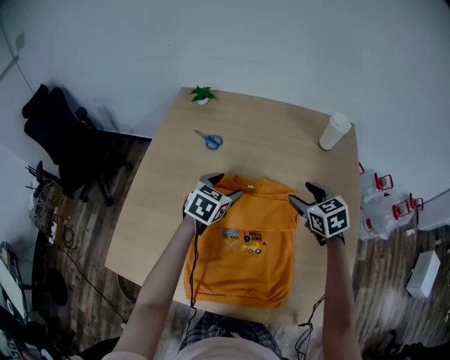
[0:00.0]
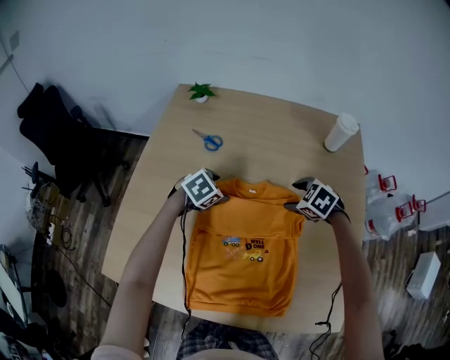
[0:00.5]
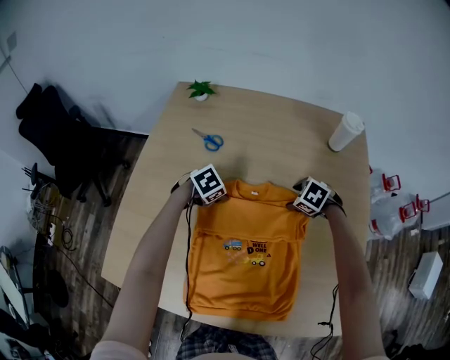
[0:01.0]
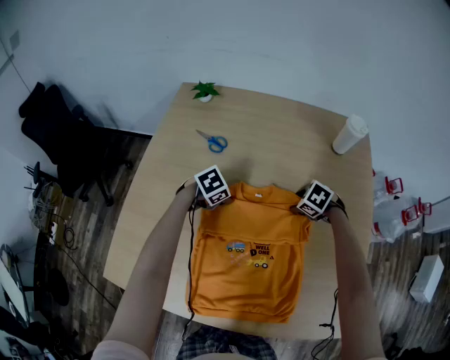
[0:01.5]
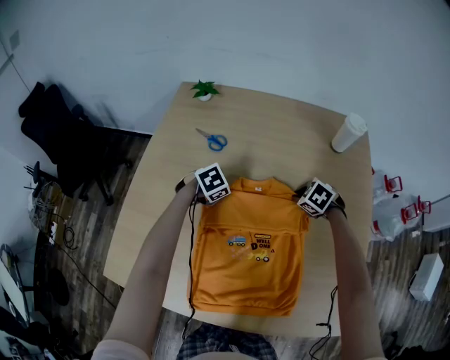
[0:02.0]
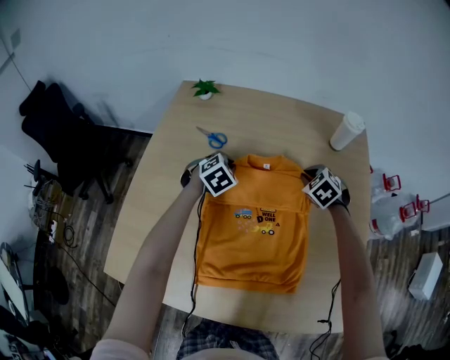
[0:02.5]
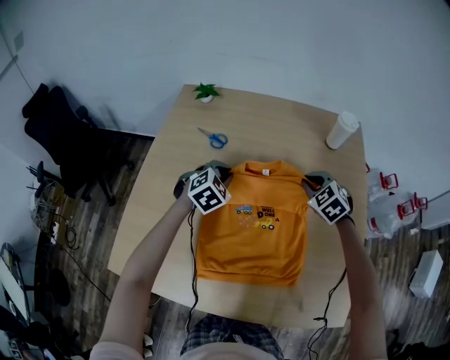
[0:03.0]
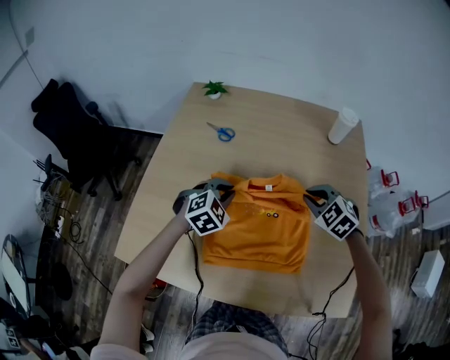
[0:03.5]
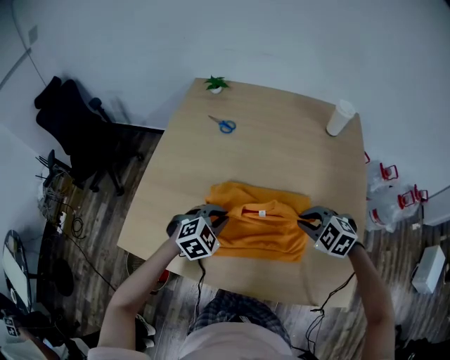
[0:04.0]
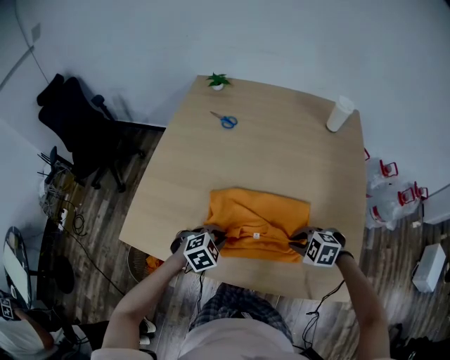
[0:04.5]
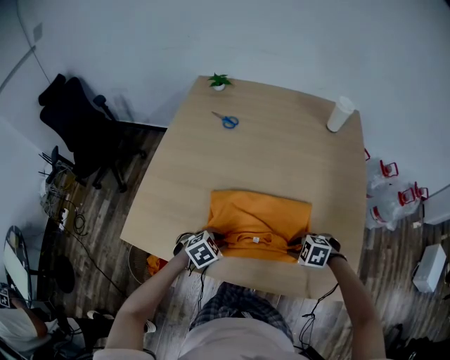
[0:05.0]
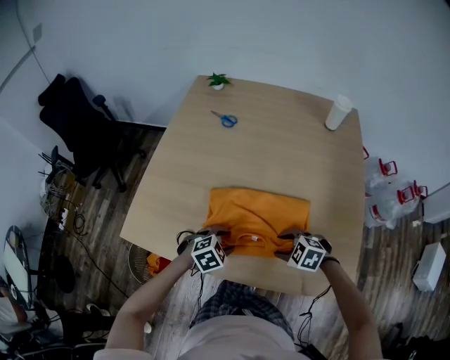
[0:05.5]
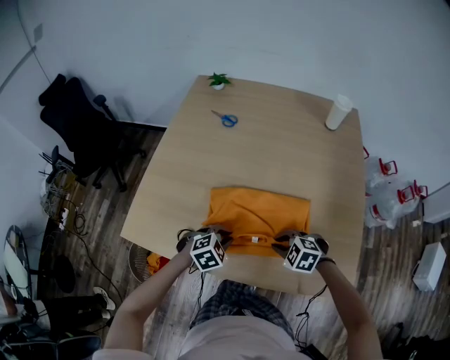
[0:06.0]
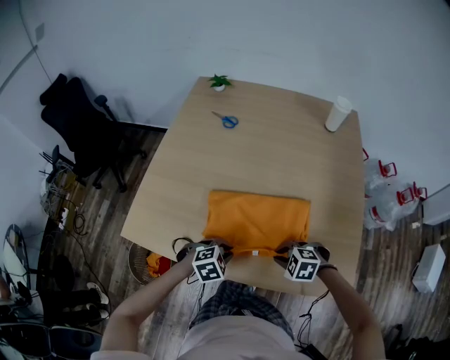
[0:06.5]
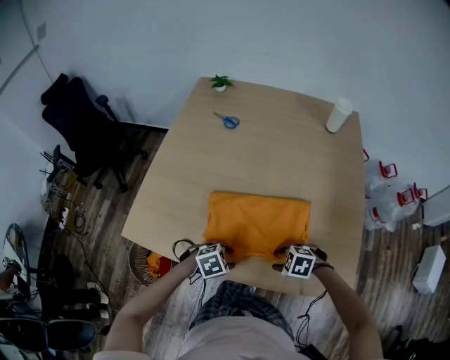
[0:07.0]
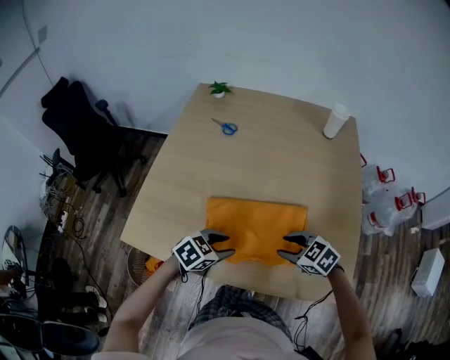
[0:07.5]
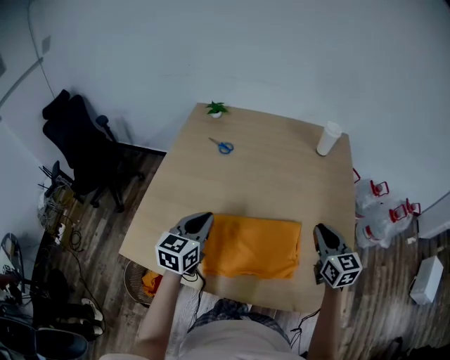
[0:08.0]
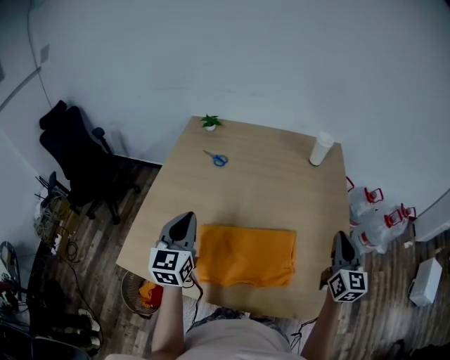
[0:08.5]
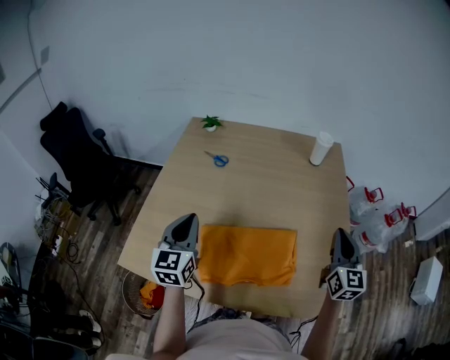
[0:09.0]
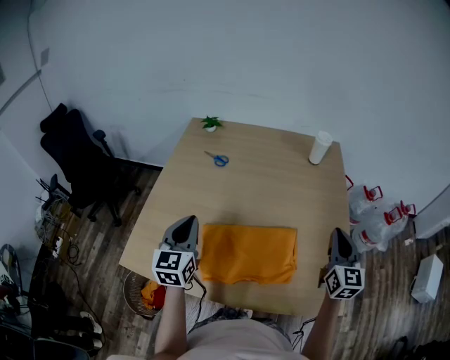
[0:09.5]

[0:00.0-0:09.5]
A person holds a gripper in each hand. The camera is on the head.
0:00.0 to 0:02.0: The two grippers go about 15 cm downward. The right gripper changes its angle by approximately 40 degrees, and closes its fingers, while the left gripper changes its angle by roughly 40 degrees, and closes.
0:02.0 to 0:04.0: The right gripper changes place by roughly 25 cm, and swivels roughly 30 degrees, while the left gripper ends up some 25 cm from where it was, and rotates roughly 30 degrees.
0:04.0 to 0:05.5: The right gripper ends up approximately 15 cm from where it was, and opens up. Meanwhile the left gripper changes place by about 15 cm, and opens up.
0:05.5 to 0:07.5: The grippers both shift upward by about 5 cm. The left gripper changes its angle by approximately 20 degrees, and closes and opens again, while the right gripper rotates about 20 degrees.
0:07.5 to 0:09.5: The grippers both shift upward by about 20 cm. The left gripper points its fingers roughly 40 degrees further upward, and closes its fingers, while the right gripper tips its fingers upward by roughly 40 degrees, and closes up.

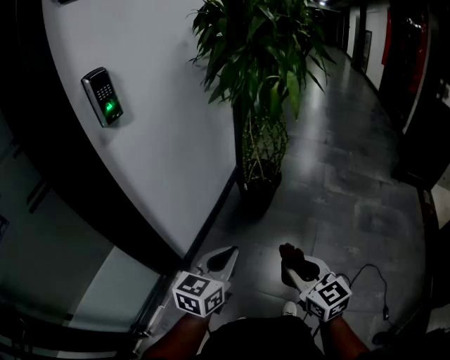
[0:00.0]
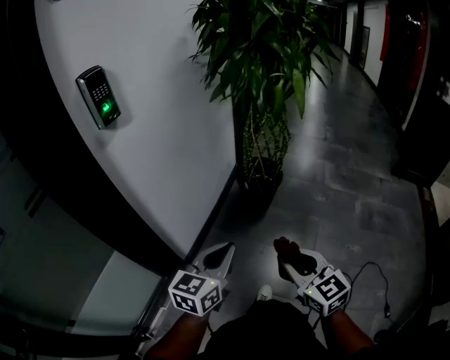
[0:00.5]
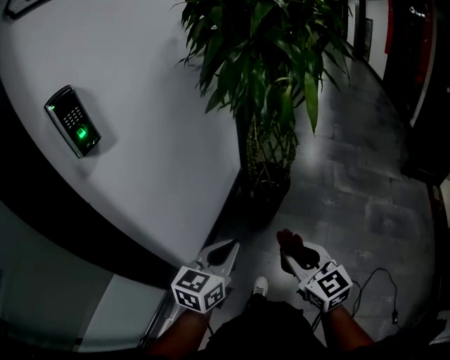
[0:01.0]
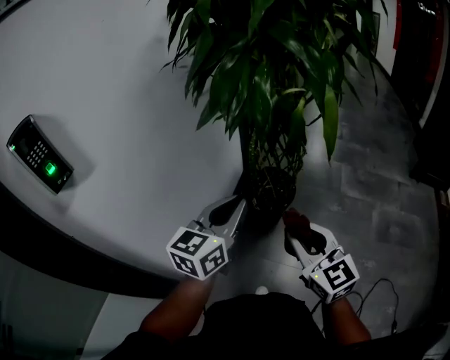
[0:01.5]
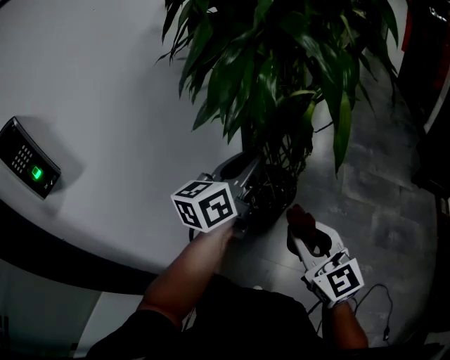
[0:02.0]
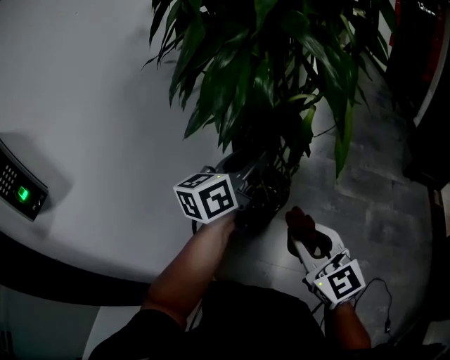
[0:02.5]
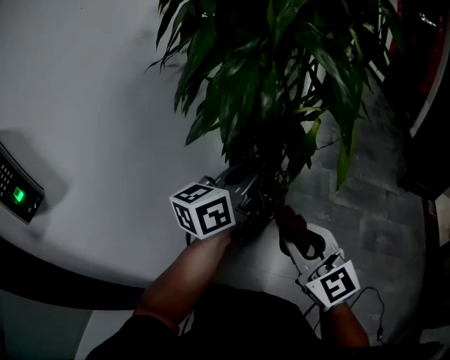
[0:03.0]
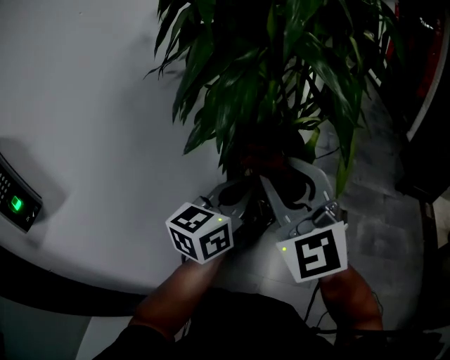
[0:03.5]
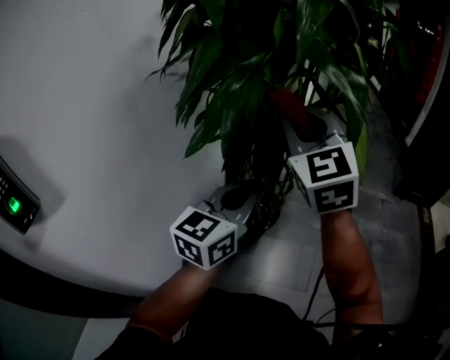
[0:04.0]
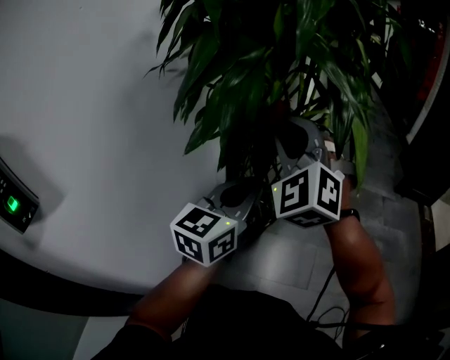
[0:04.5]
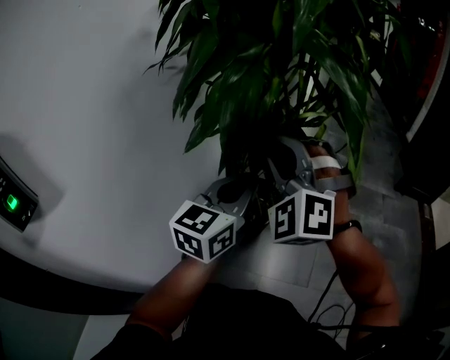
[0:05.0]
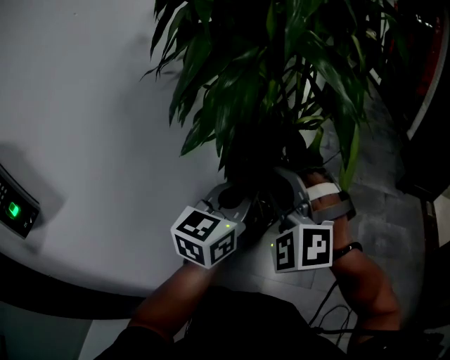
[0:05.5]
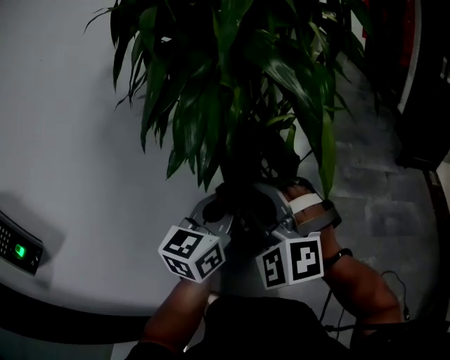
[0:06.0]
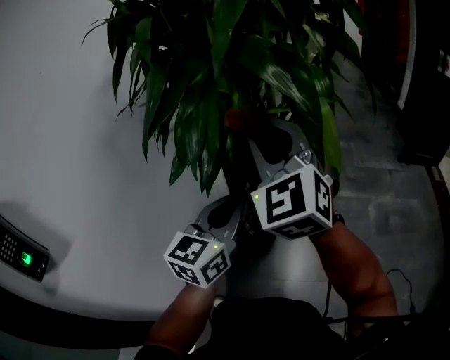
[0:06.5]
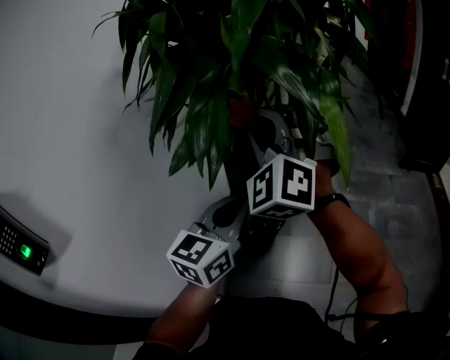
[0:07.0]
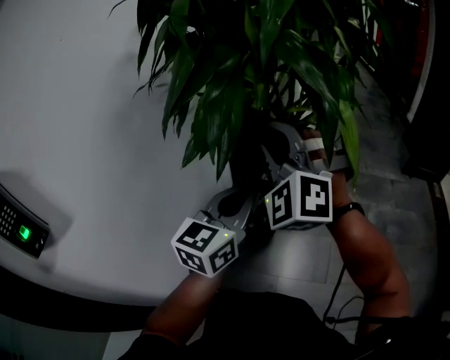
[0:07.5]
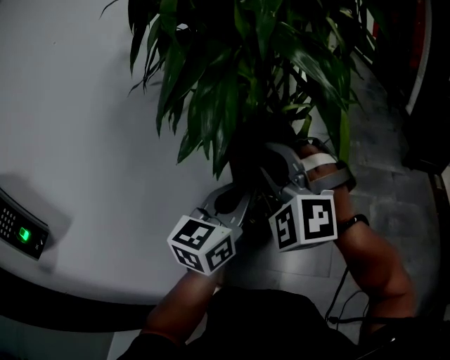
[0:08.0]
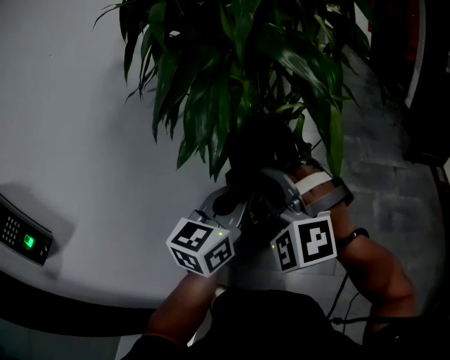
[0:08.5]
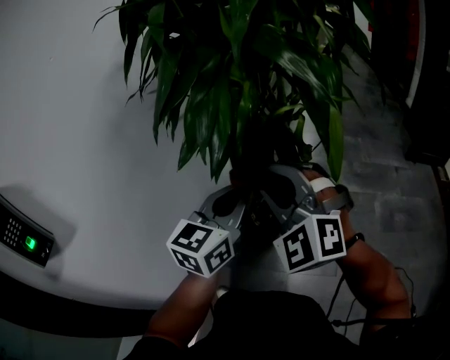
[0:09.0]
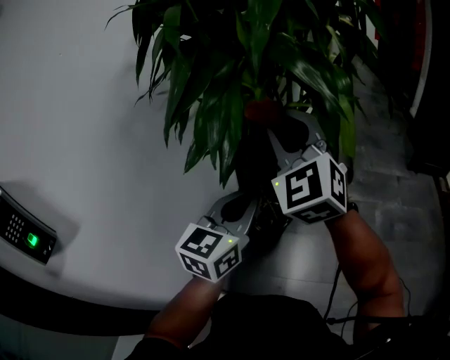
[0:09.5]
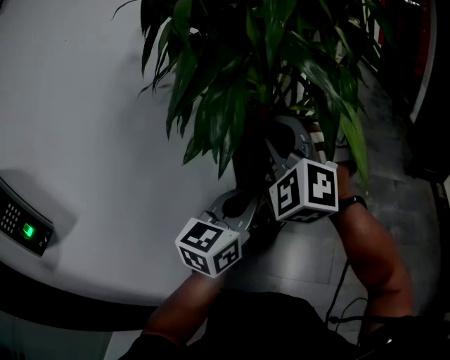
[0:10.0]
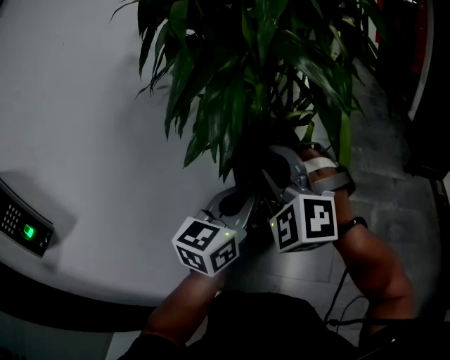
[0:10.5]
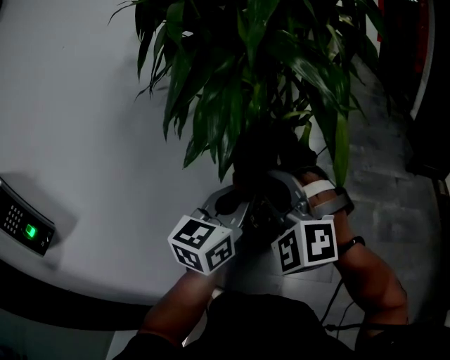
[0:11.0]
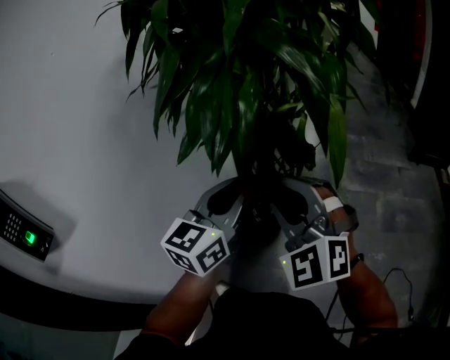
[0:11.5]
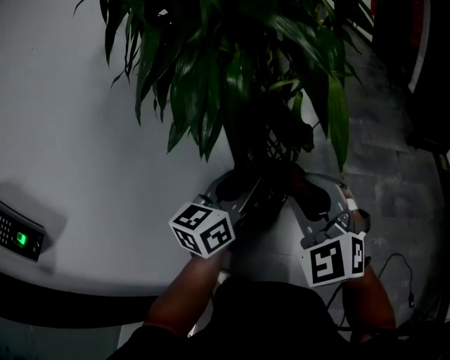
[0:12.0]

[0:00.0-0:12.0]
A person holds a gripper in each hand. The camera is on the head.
0:00.0 to 0:02.0: The two grippers go roughly 40 cm forward. The left gripper rotates approximately 20 degrees, and opens up.
0:02.0 to 0:04.0: The left gripper closes its fingers. The right gripper goes some 30 cm forward and upward, and rotates approximately 30 degrees.
0:04.0 to 0:06.0: The right gripper heads downward and backward, covering approximately 15 cm, and changes its angle by about 40 degrees.
0:08.0 to 0:10.0: The right gripper moves roughly 5 cm.
0:10.0 to 0:12.0: The left gripper opens up. Meanwhile the right gripper is displaced backward, downward and to the right by some 15 cm, and changes its angle by about 20 degrees.

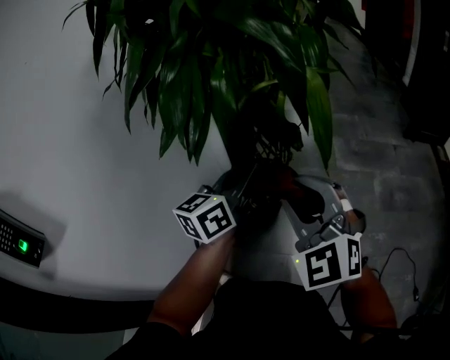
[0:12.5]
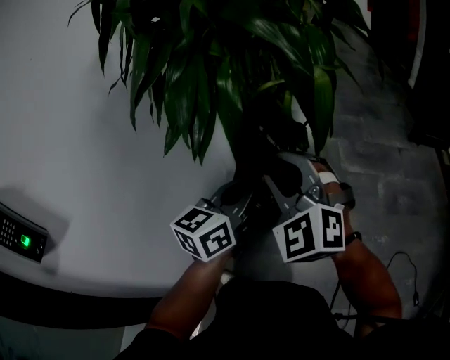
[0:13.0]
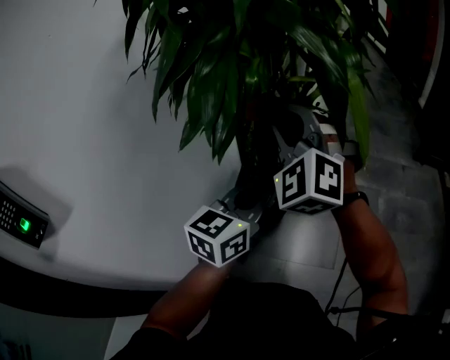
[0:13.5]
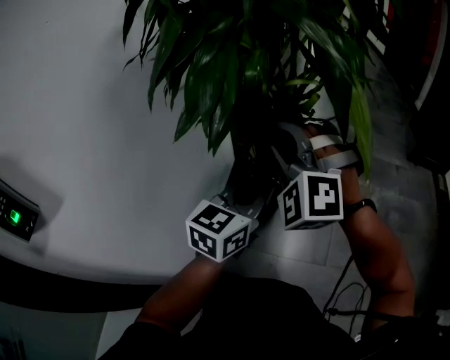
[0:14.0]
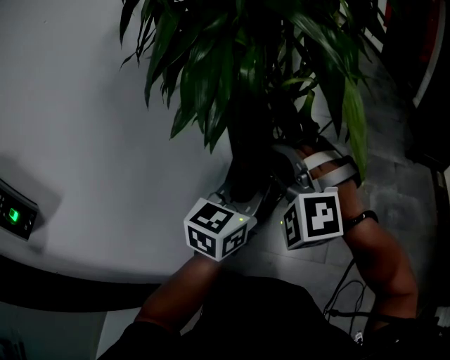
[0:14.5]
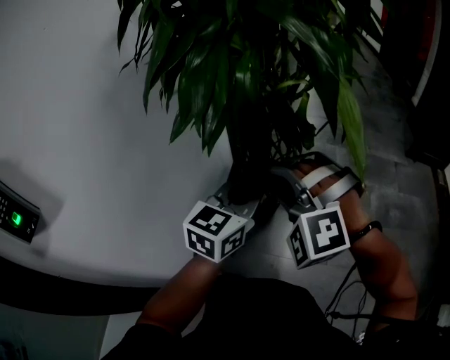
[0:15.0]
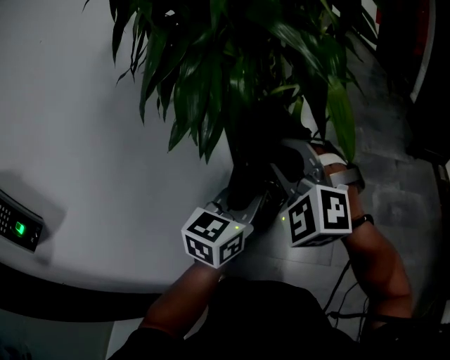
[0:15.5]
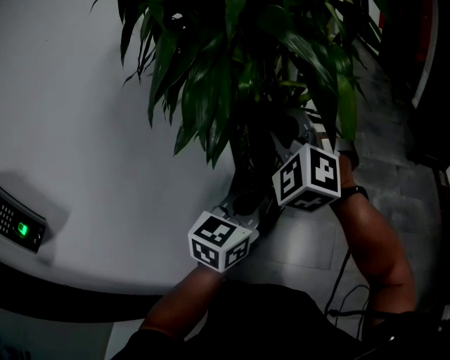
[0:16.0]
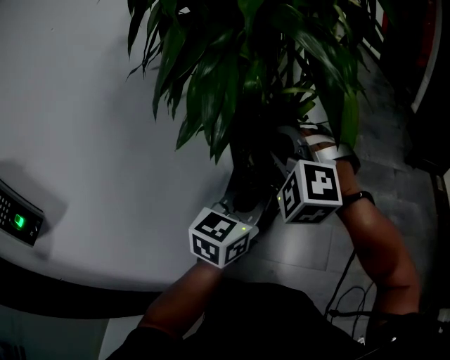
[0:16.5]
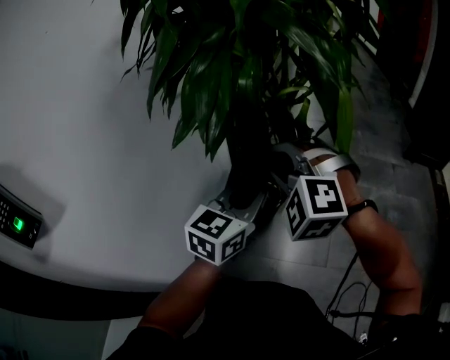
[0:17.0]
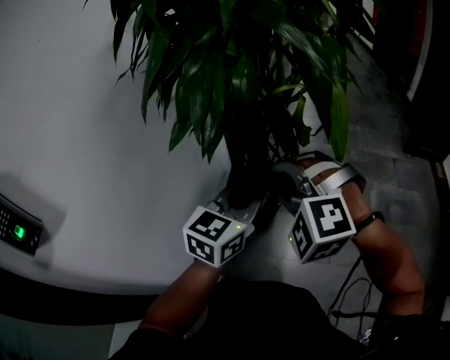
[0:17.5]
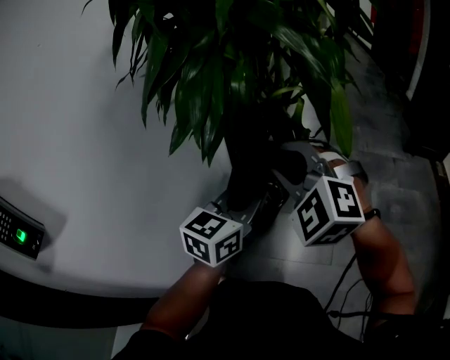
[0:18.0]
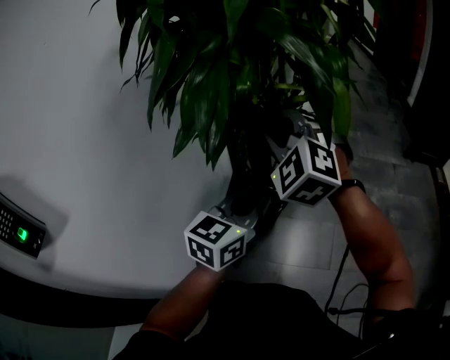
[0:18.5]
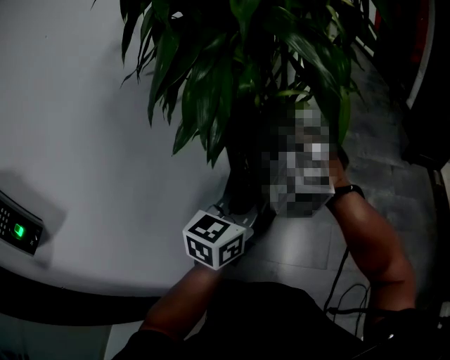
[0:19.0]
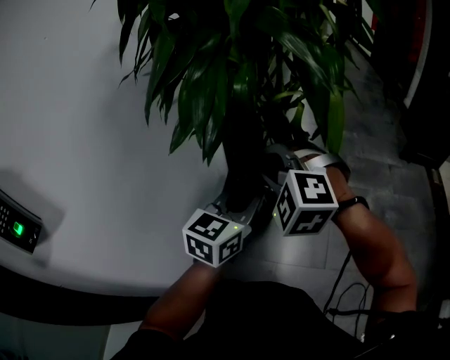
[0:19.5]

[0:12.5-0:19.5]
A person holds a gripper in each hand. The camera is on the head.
0:12.5 to 0:14.5: The left gripper rotates approximately 20 degrees. The right gripper goes roughly 10 cm to the left and forward, and rotates approximately 40 degrees.
0:14.5 to 0:16.0: The right gripper moves forward and upward, some 10 cm, and rotates some 20 degrees.
0:16.0 to 0:17.5: The right gripper moves backward and downward, roughly 15 cm, and changes its angle by roughly 30 degrees.
